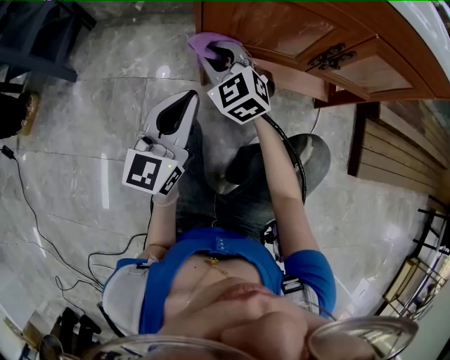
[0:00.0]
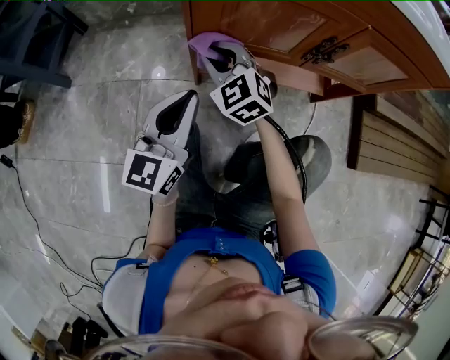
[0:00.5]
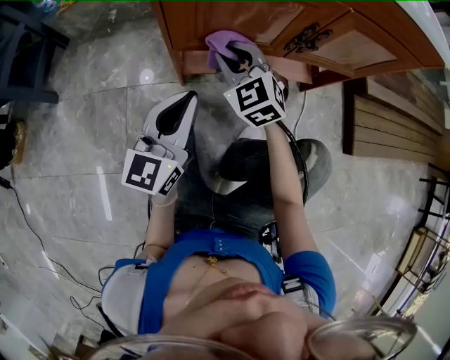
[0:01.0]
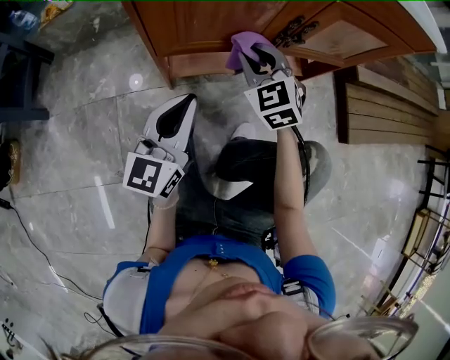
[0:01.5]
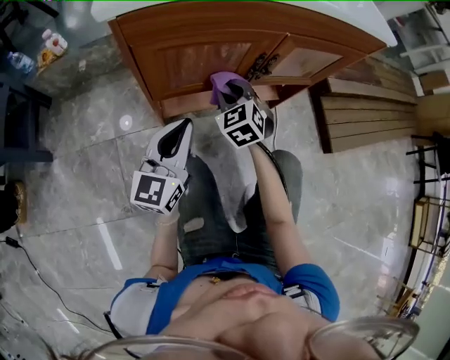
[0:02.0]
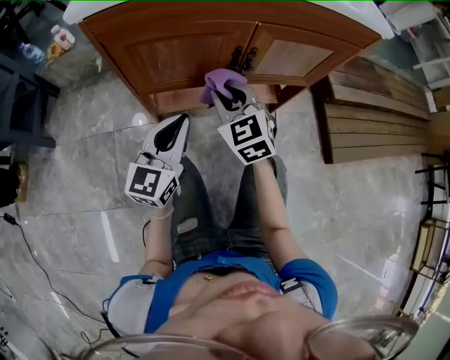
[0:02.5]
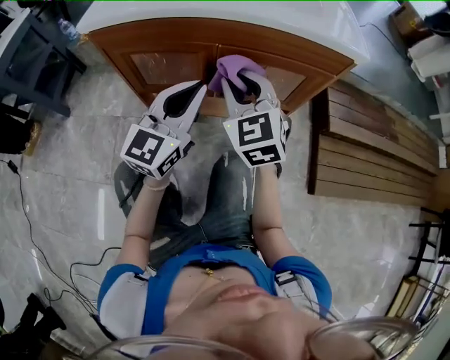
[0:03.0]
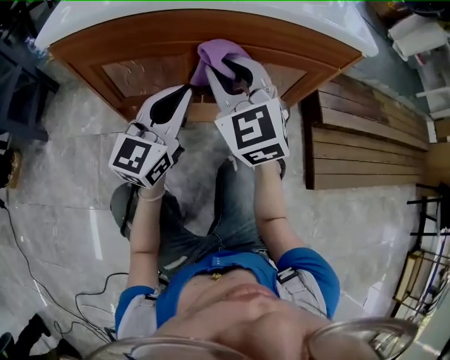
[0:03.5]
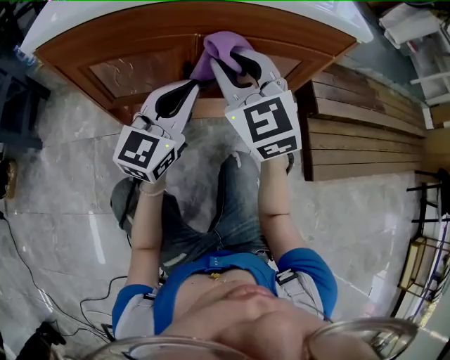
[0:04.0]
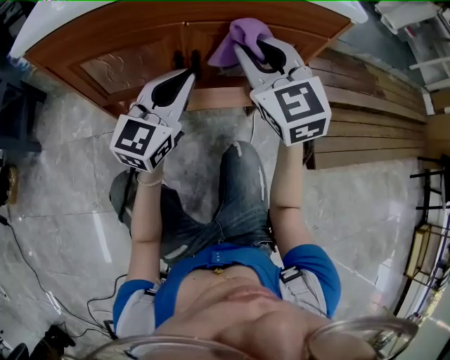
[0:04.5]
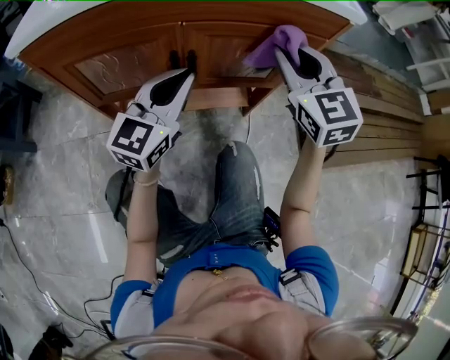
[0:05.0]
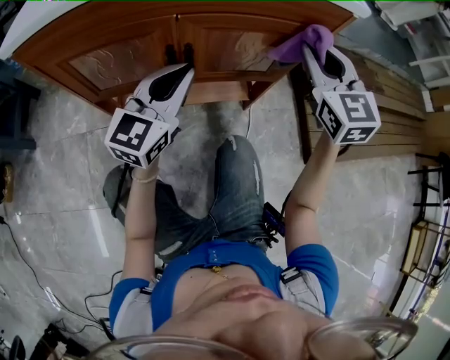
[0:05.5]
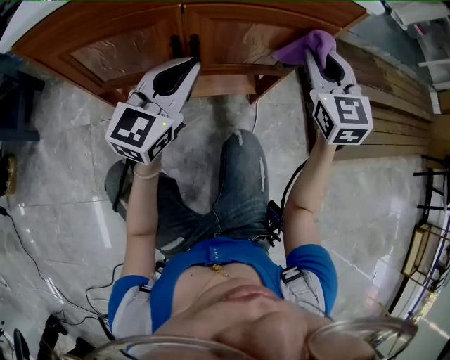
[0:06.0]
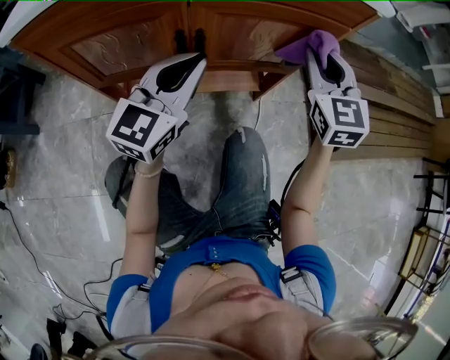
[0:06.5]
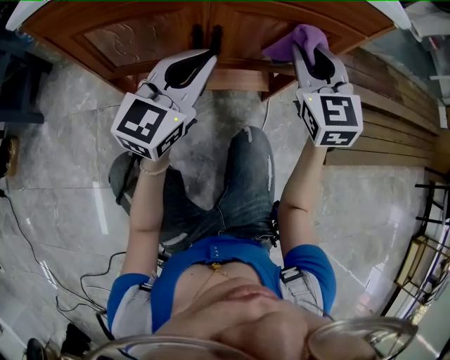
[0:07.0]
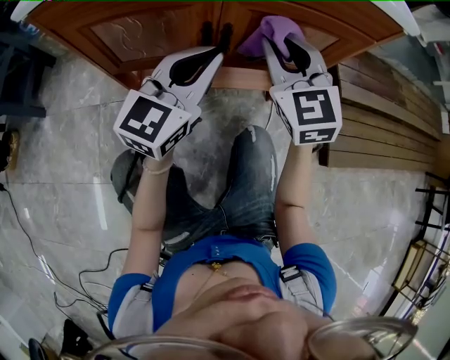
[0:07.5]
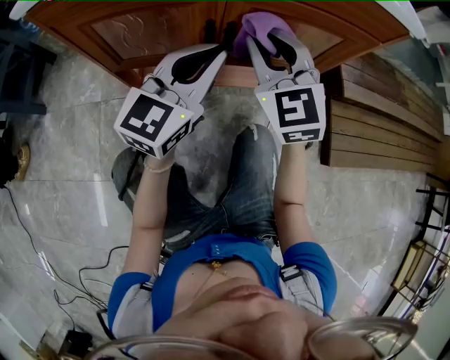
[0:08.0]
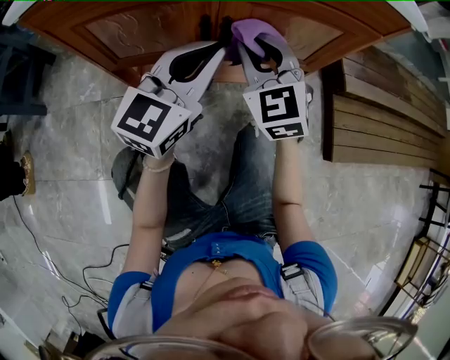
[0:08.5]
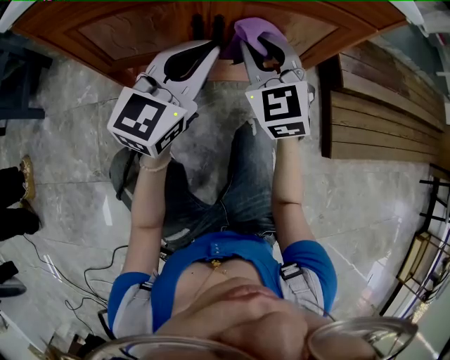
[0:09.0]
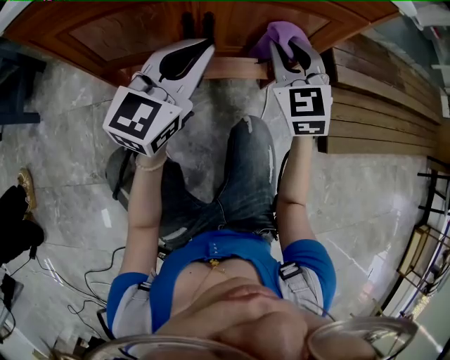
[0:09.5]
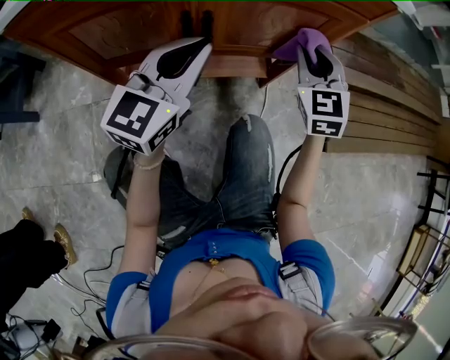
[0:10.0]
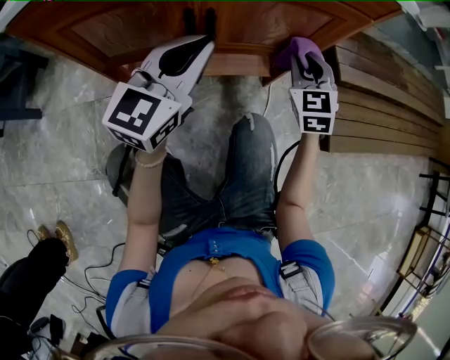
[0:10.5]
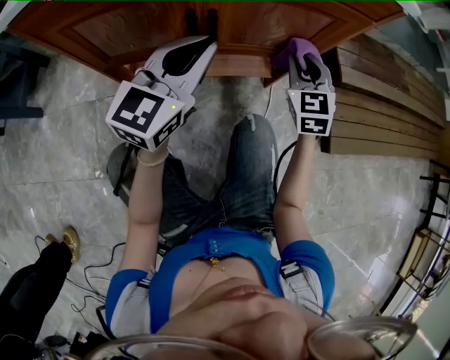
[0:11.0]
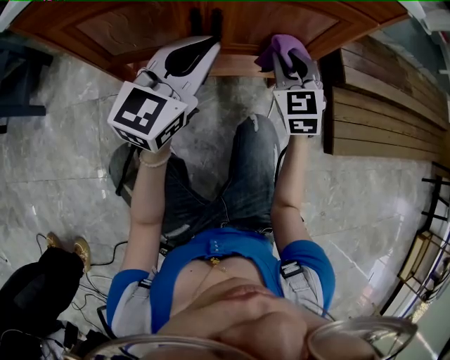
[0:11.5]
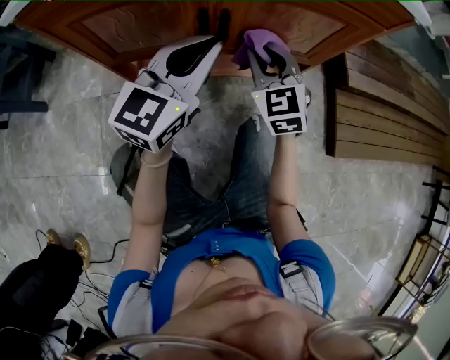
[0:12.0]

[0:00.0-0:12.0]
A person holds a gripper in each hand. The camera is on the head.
0:00.0 to 0:02.0: The right gripper ends up roughly 20 cm from where it was, and rotates some 30 degrees. Meanwhile the left gripper ends up about 10 cm from where it was.
0:02.0 to 0:04.0: The left gripper shifts roughly 20 cm to the right and forward, while the right gripper travels upward and to the right by roughly 25 cm, and rotates roughly 30 degrees.
0:04.0 to 0:06.0: The right gripper heads to the right, covering some 20 cm, and swivels approximately 20 degrees.
0:06.0 to 0:08.0: The right gripper moves to the left, about 20 cm.
0:08.0 to 0:10.0: The right gripper goes some 15 cm to the right.
0:10.0 to 0:12.0: The right gripper goes roughly 15 cm to the left.

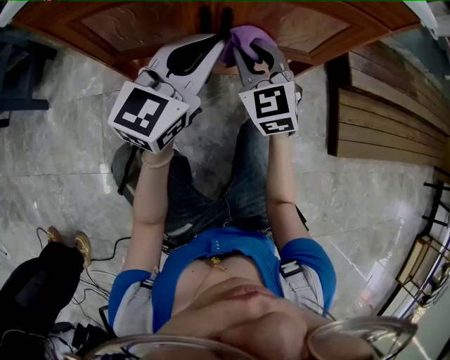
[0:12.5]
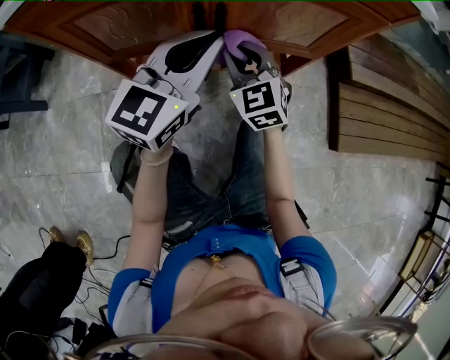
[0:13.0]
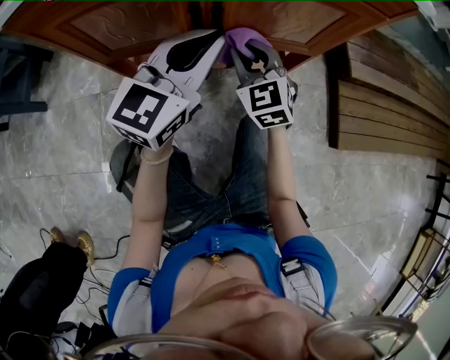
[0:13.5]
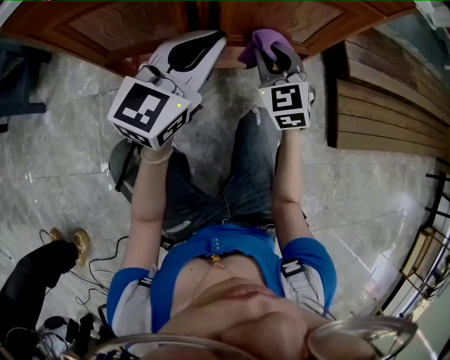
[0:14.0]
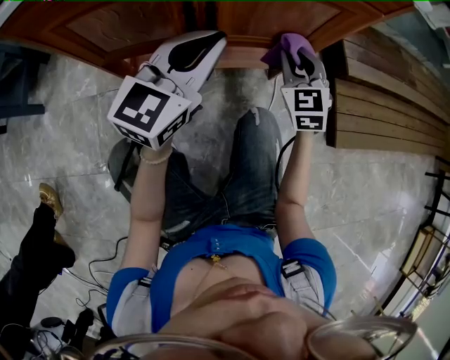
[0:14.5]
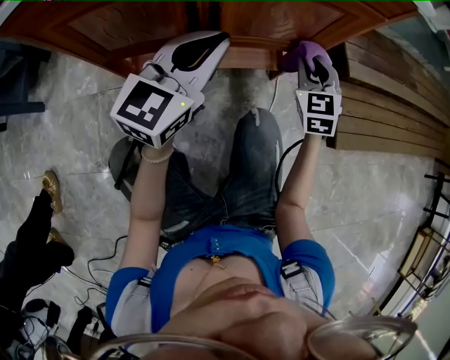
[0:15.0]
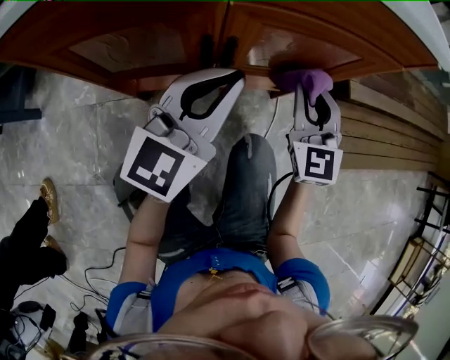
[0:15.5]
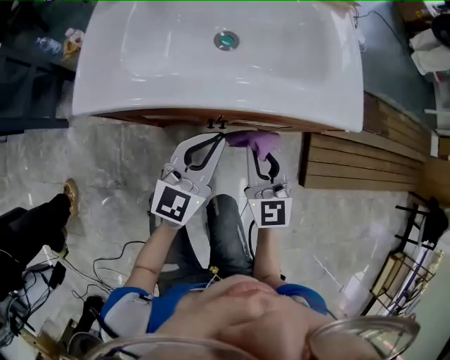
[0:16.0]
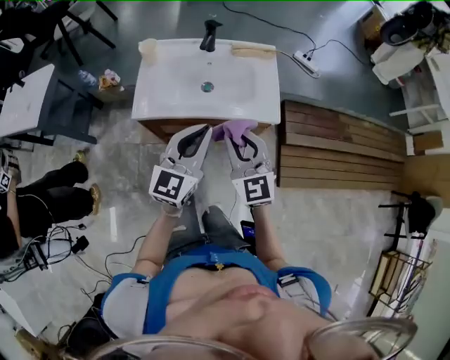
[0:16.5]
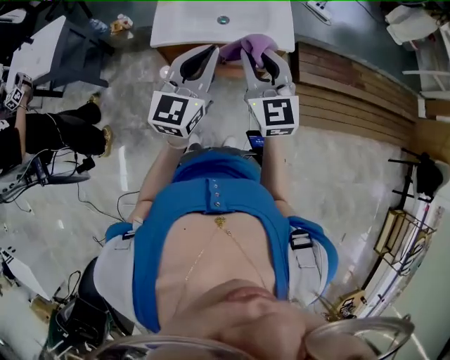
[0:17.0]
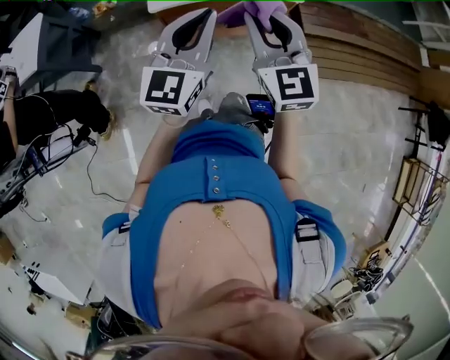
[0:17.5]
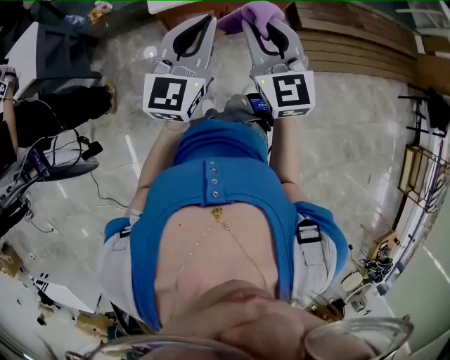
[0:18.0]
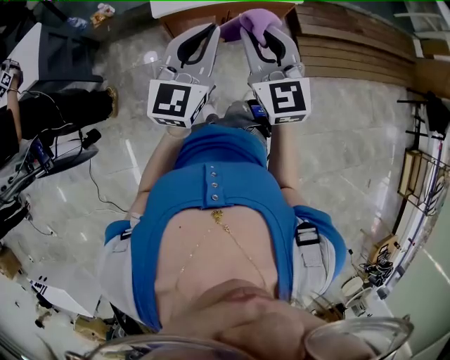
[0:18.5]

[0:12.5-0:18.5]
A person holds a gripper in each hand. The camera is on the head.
0:12.5 to 0:14.5: The right gripper travels to the right by approximately 15 cm.
0:14.5 to 0:16.5: The grippers both shift upward by approximately 50 cm. The right gripper rotates some 20 degrees.
0:16.5 to 0:18.5: The two grippers go some 20 cm backward, to the left and upward.

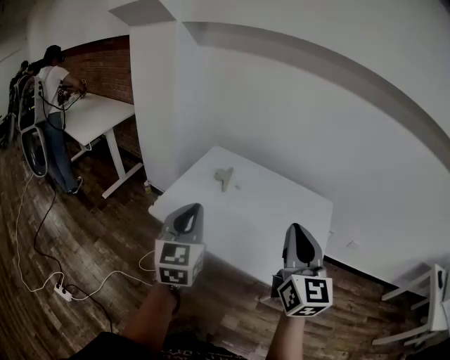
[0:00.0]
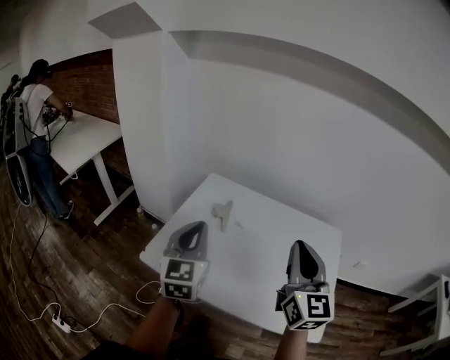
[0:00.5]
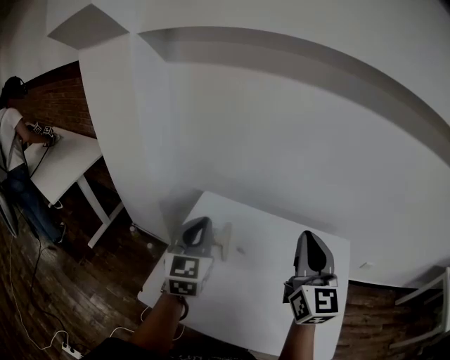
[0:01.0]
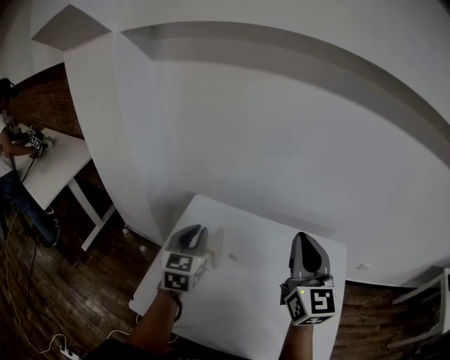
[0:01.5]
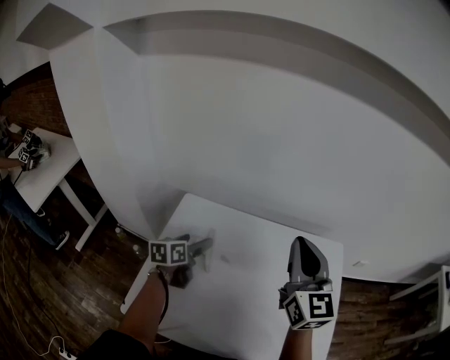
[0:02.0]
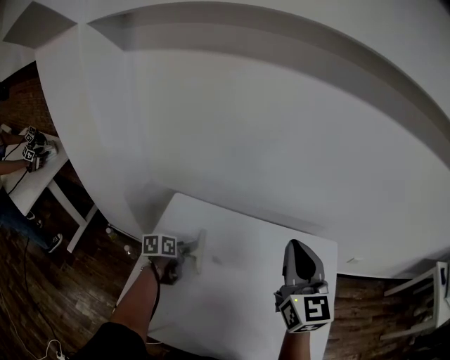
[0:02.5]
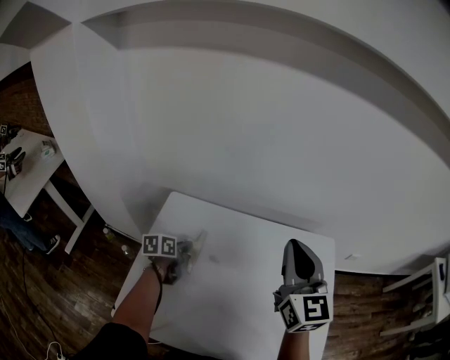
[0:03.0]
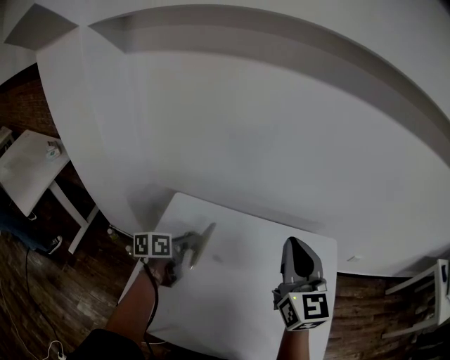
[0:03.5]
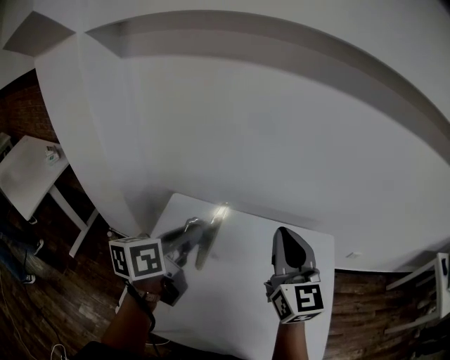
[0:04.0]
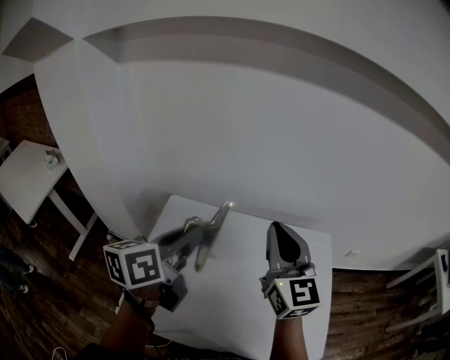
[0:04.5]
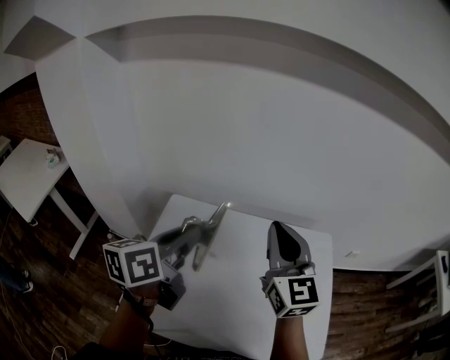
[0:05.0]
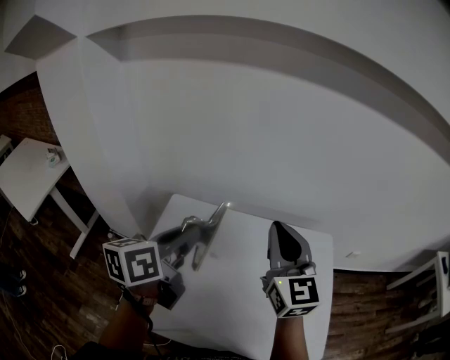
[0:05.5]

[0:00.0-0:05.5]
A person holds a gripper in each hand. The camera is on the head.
0:00.0 to 0:02.0: The right gripper goes approximately 30 cm forward. Meanwhile the left gripper shifts some 50 cm forward and downward, changes its angle by approximately 50 degrees, and opens.
0:02.0 to 0:03.5: The left gripper moves about 10 cm downward and comes back, and closes its fingers.
0:03.5 to 0:05.5: The left gripper heads upward, covering approximately 20 cm.

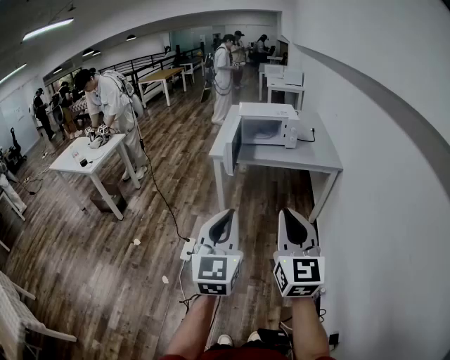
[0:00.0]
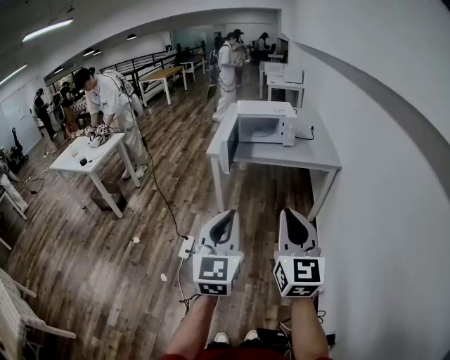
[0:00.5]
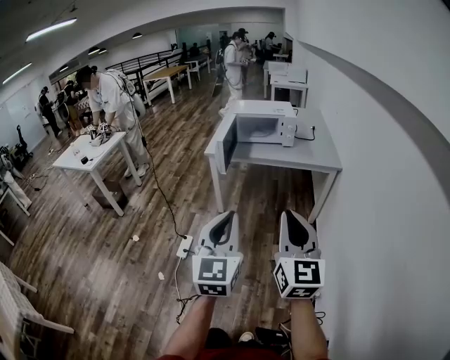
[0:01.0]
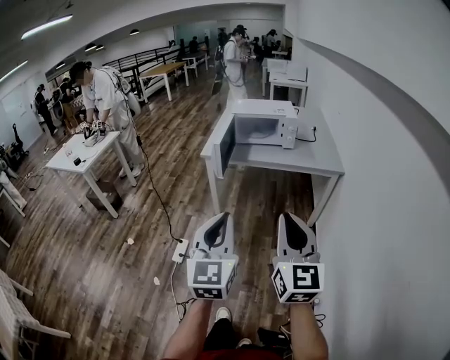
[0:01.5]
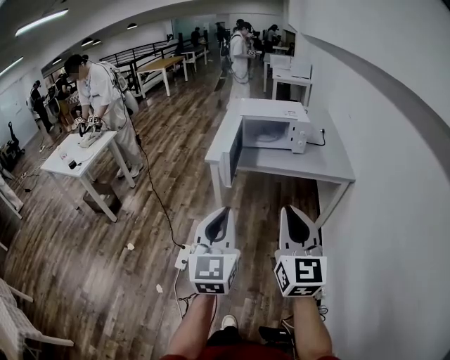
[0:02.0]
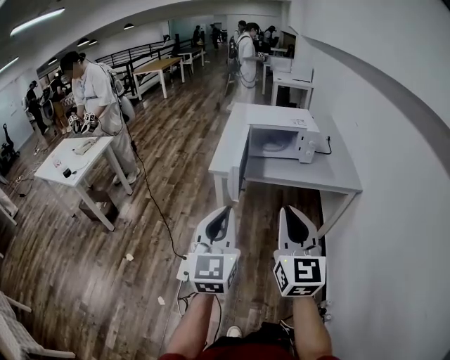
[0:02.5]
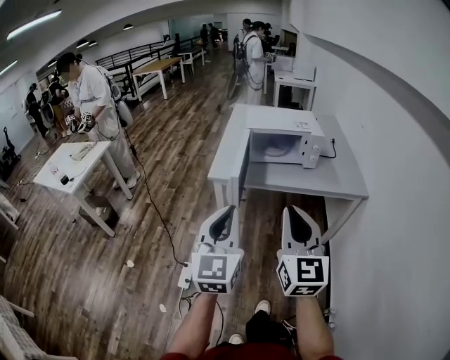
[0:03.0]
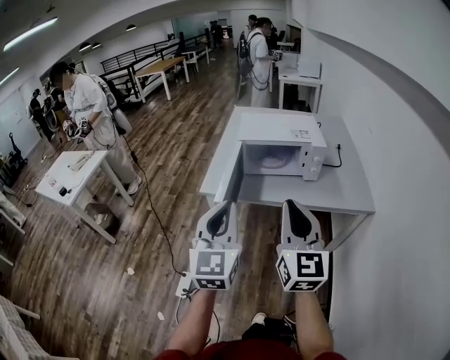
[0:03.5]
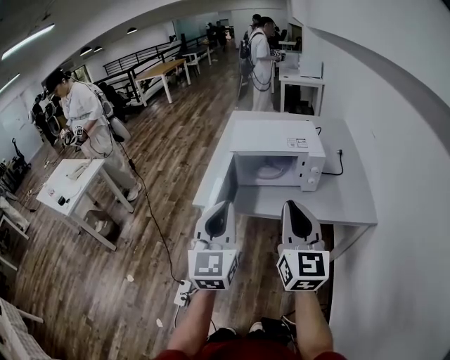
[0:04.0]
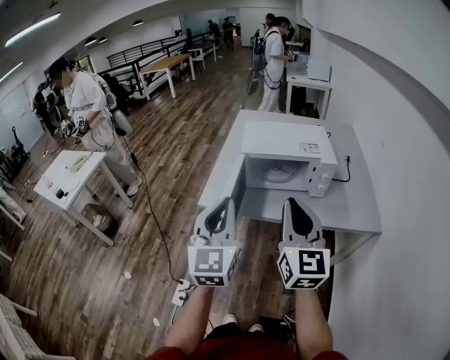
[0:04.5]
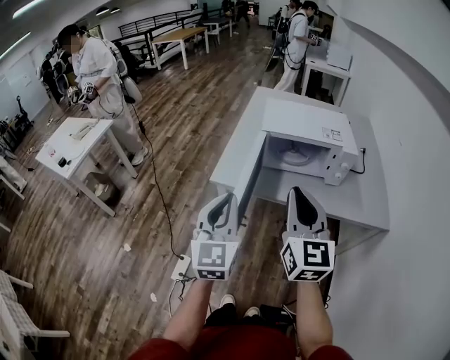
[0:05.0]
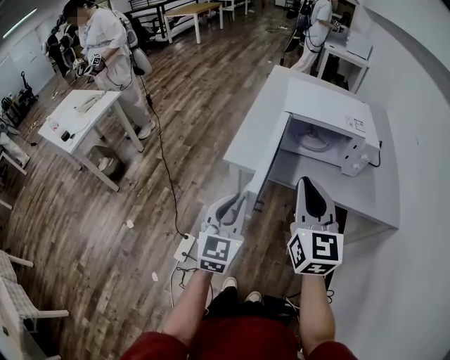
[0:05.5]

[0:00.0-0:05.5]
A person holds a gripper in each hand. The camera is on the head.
0:00.0 to 0:02.0: Both grippers travel together forward, about 20 cm.
0:02.0 to 0:03.5: The grippers both shift forward by approximately 30 cm.
0:03.5 to 0:05.5: The right gripper heads forward, to the left and downward, covering some 15 cm, while the left gripper goes about 20 cm downward, forward and to the left.
